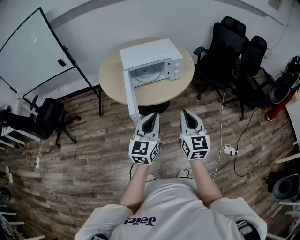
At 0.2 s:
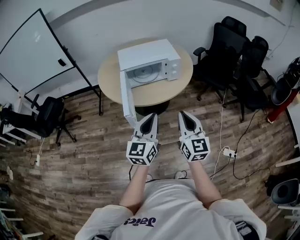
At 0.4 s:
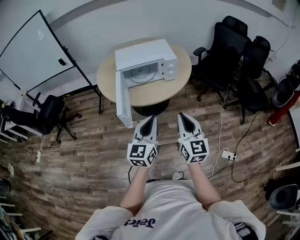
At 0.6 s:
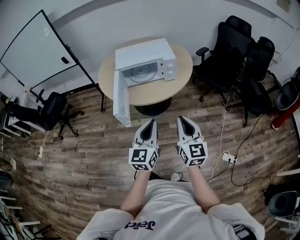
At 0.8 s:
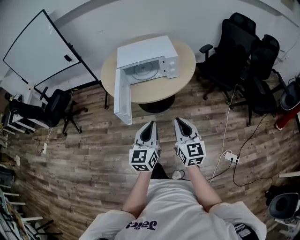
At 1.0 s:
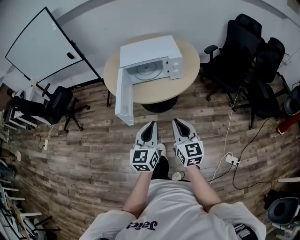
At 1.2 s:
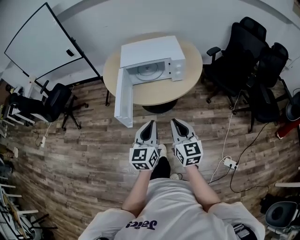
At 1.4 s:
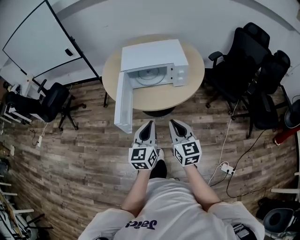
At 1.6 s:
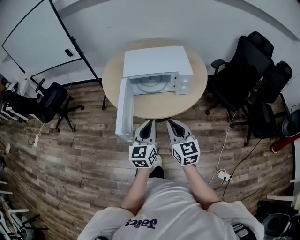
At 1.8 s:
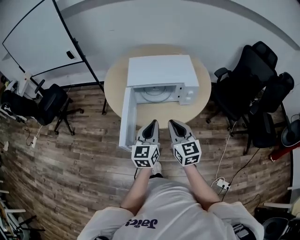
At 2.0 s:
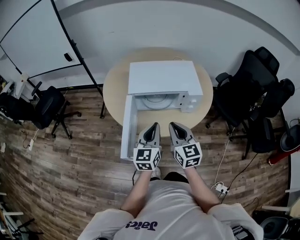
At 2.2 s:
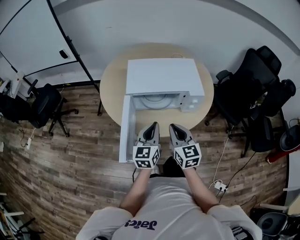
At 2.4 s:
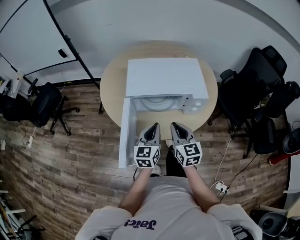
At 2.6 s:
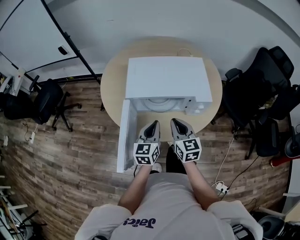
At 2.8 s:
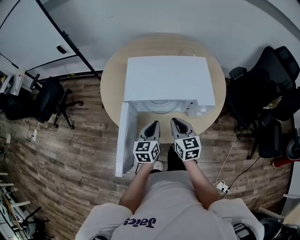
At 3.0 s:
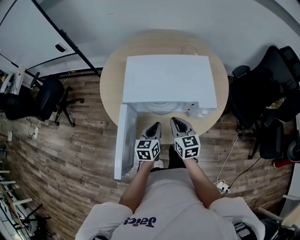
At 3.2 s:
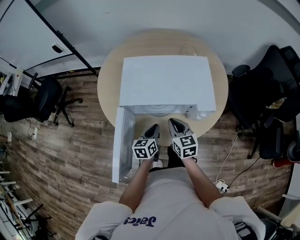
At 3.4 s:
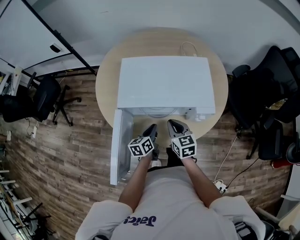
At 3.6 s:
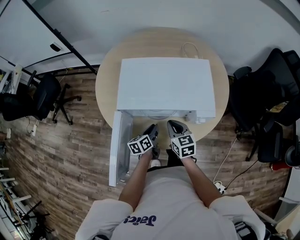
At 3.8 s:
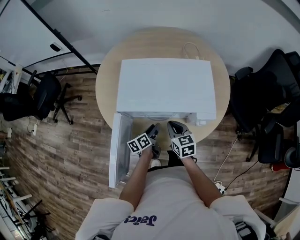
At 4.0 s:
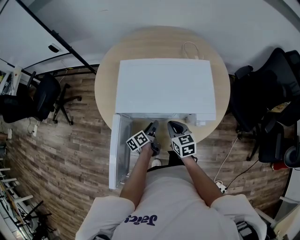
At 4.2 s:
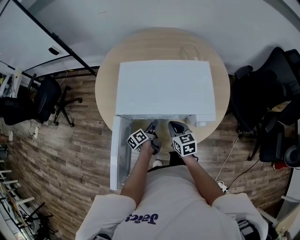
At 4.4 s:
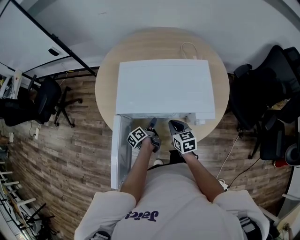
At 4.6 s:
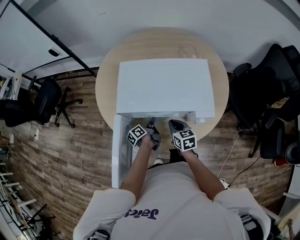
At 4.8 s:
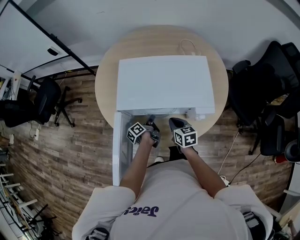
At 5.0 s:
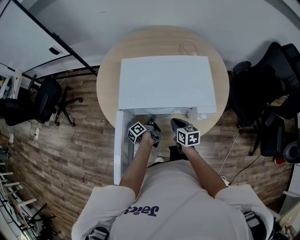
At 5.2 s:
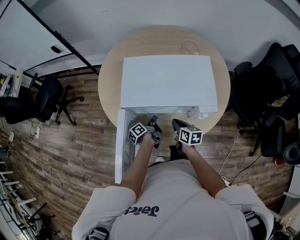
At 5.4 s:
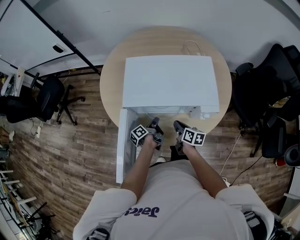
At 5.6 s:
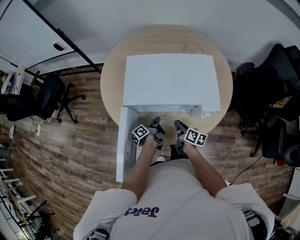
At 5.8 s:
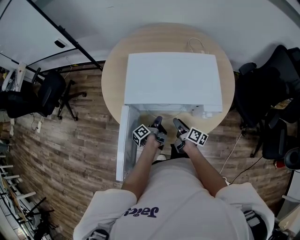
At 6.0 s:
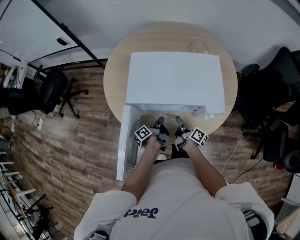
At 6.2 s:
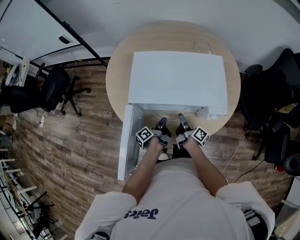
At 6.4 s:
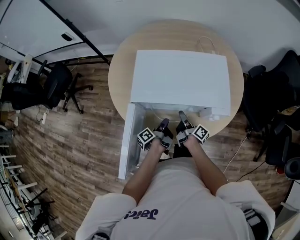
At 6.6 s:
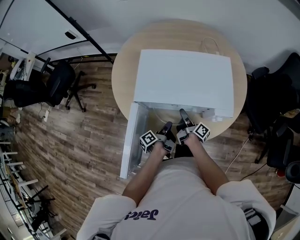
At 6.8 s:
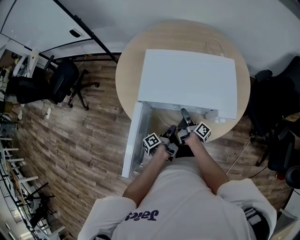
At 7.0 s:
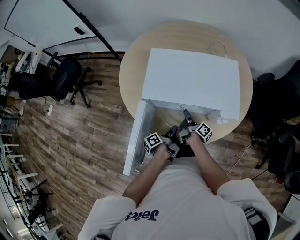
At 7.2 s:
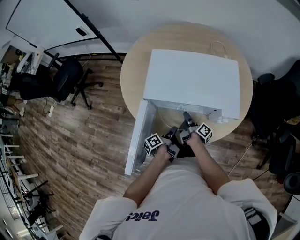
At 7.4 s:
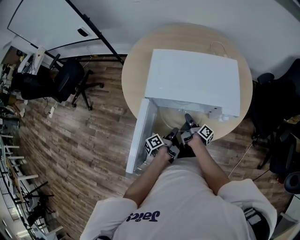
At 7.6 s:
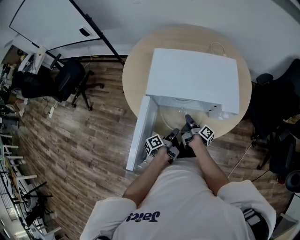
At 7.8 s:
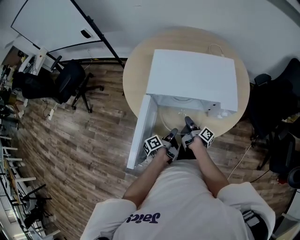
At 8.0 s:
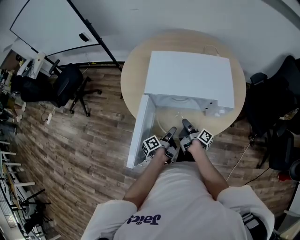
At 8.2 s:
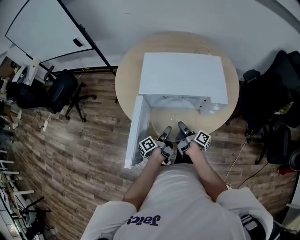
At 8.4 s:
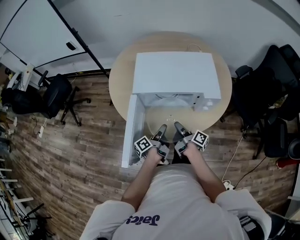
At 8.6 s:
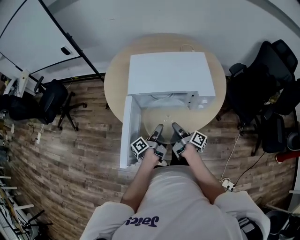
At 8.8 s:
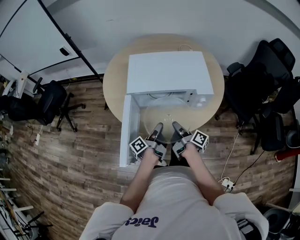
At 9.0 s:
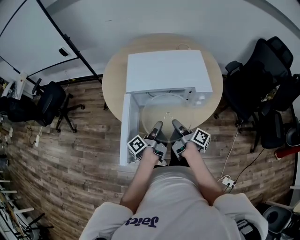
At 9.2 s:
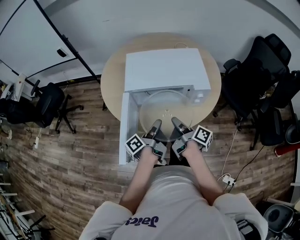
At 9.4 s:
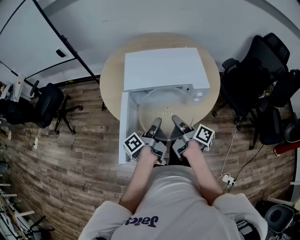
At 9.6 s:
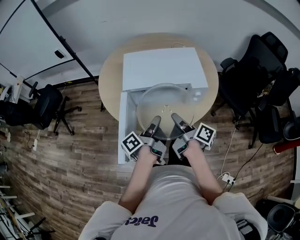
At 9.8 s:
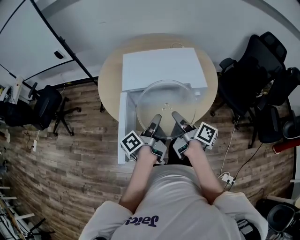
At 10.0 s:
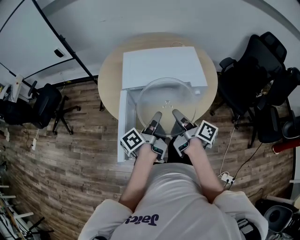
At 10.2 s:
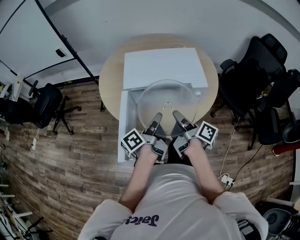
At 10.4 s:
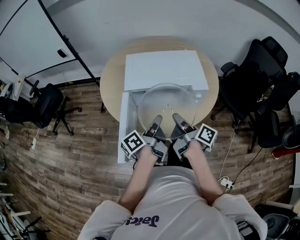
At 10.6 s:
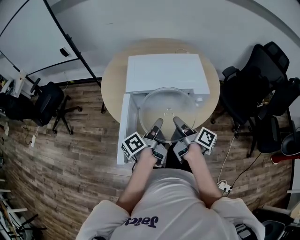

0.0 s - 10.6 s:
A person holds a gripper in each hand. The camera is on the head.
0.0 s - 1.6 s: The right gripper moves approximately 15 cm, and turns by some 20 degrees.
1.6 s - 3.0 s: The right gripper shifts by roughly 30 cm.
3.0 s - 4.6 s: The right gripper moves downward, some 10 cm.
4.6 s - 6.0 s: The right gripper travels downward by approximately 5 cm, twists approximately 60 degrees clockwise, seen from behind, and opens up.
6.0 s - 7.6 s: The right gripper closes its fingers.
7.6 s - 9.0 s: The right gripper goes approximately 15 cm upward.
9.0 s - 10.6 s: The right gripper heads upward, covering some 10 cm.

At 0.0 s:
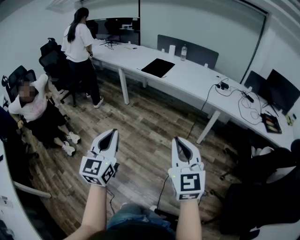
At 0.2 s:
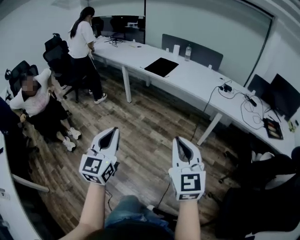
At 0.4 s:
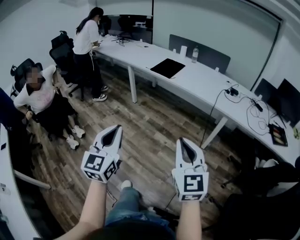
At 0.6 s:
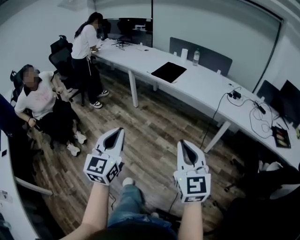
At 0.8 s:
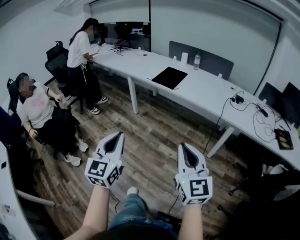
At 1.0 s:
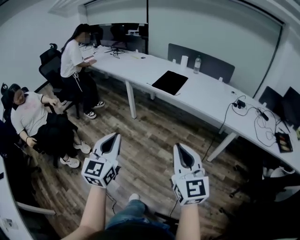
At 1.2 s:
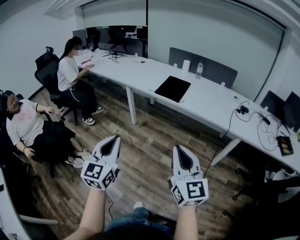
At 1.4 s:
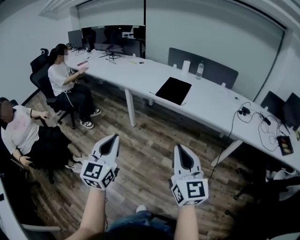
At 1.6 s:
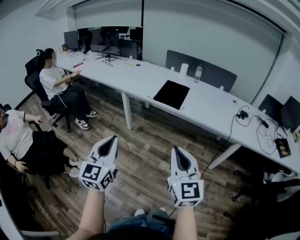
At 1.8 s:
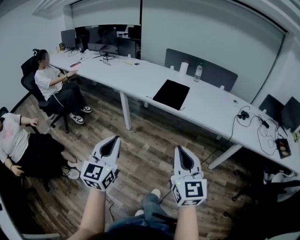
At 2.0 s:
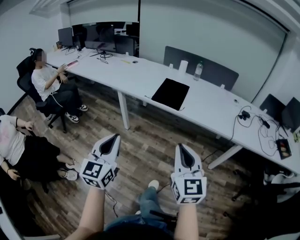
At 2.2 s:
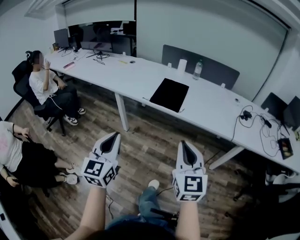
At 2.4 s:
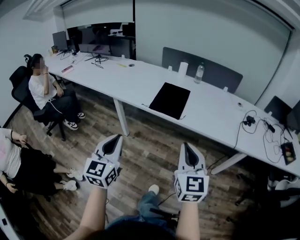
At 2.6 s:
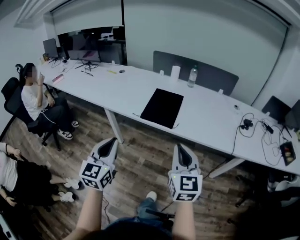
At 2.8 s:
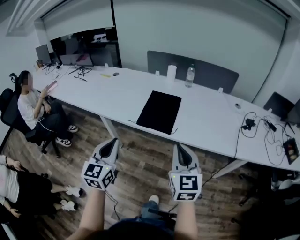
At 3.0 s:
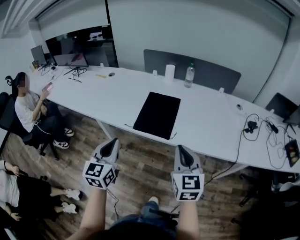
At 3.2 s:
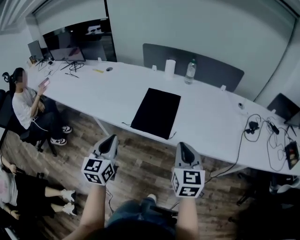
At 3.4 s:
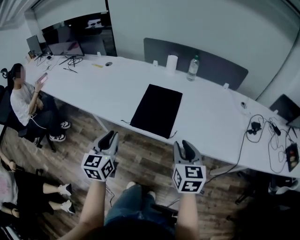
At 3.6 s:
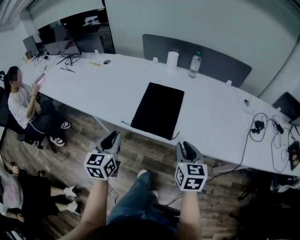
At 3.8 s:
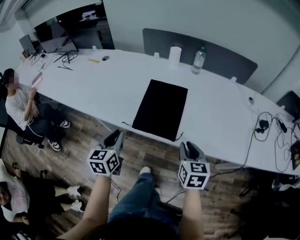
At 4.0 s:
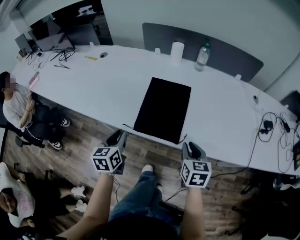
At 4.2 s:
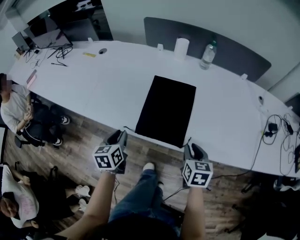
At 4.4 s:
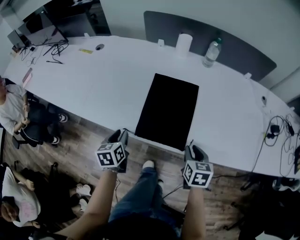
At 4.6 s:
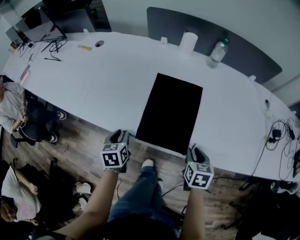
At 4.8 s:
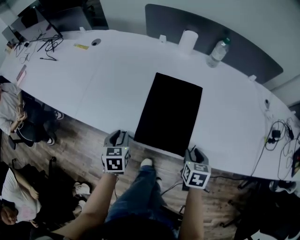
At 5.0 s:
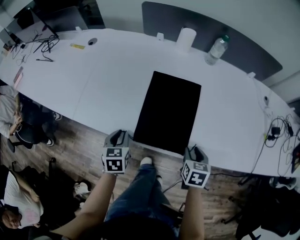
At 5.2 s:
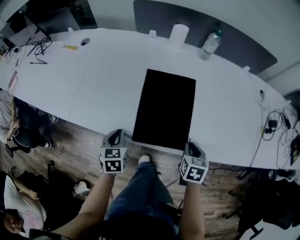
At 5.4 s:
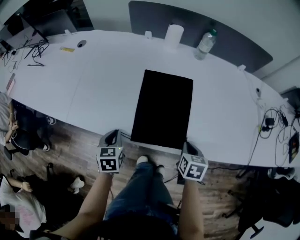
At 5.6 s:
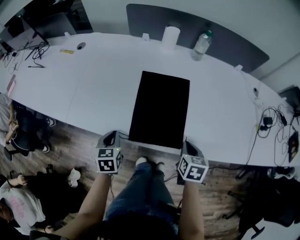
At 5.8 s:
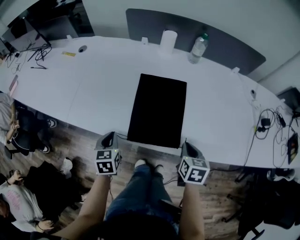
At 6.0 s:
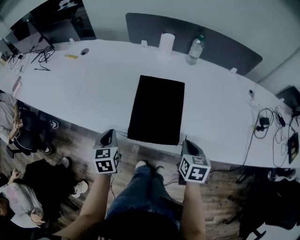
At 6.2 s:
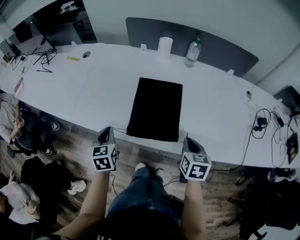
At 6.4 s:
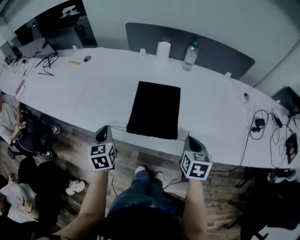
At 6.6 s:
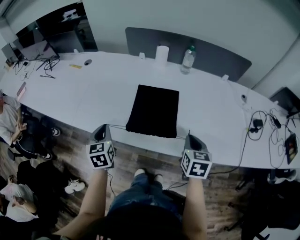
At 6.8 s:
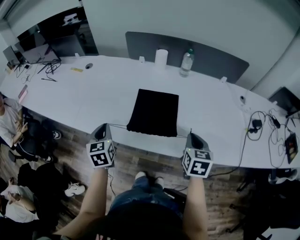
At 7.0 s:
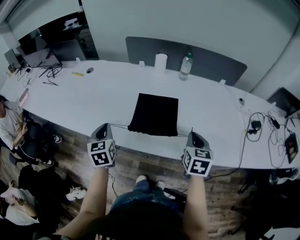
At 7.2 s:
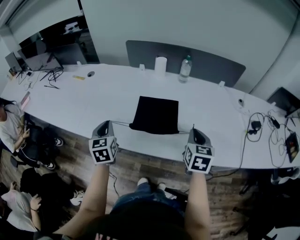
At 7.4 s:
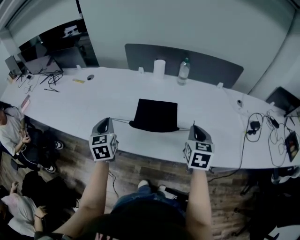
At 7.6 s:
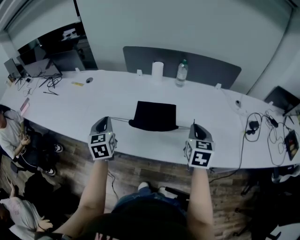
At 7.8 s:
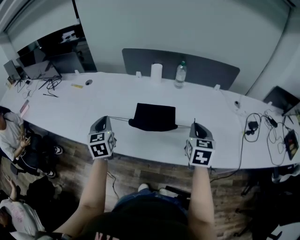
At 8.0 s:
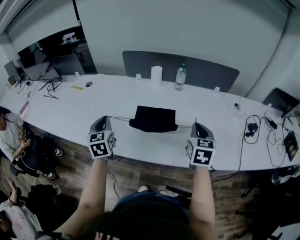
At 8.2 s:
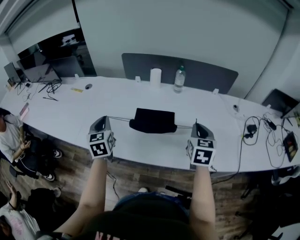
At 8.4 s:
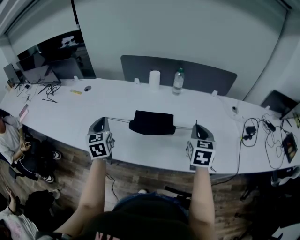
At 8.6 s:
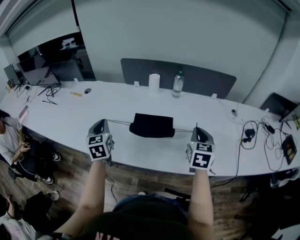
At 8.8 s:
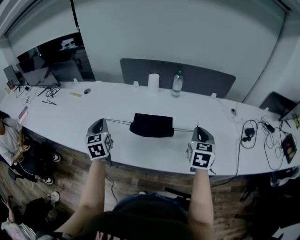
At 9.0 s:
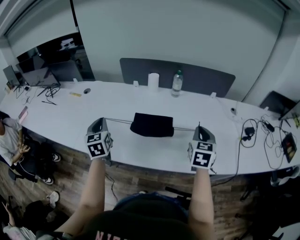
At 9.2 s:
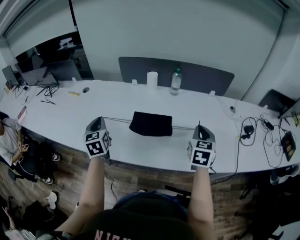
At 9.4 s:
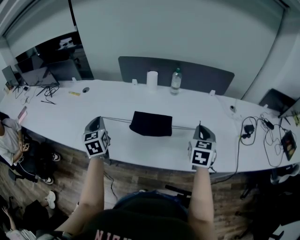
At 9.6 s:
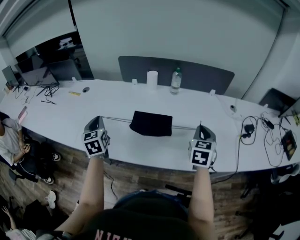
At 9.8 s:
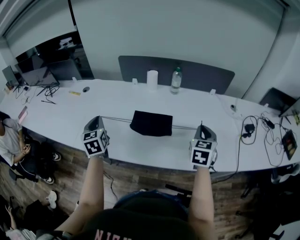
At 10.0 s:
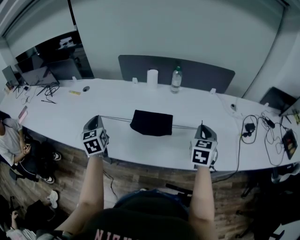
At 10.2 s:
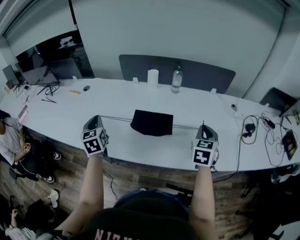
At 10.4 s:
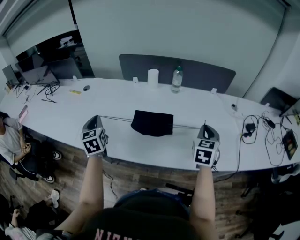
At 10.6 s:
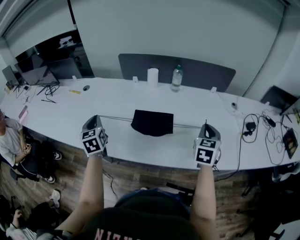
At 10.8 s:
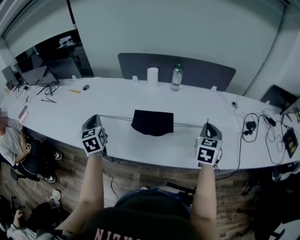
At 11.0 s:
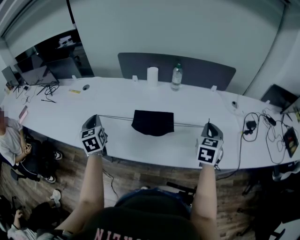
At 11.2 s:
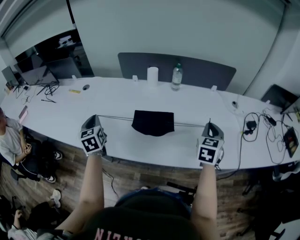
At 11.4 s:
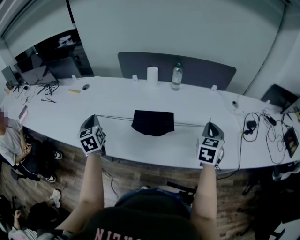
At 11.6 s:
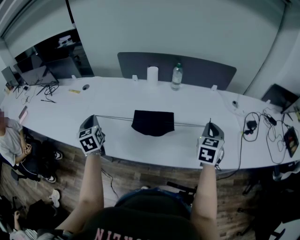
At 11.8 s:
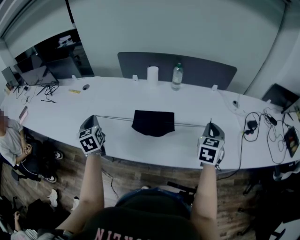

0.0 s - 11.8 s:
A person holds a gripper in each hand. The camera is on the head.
0.0 s - 1.4 s: Both grippers travel together forward and to the left, approximately 35 cm.
1.4 s - 3.0 s: Both grippers are carried forward, about 40 cm. The right gripper changes its angle by about 20 degrees.
3.0 s - 4.4 s: The two grippers go approximately 30 cm downward and forward. The right gripper points its fingers roughly 30 degrees further downward, and opens. Meanwhile the left gripper points its fingers approximately 30 degrees further downward, and opens its fingers.
4.4 s - 6.0 s: The right gripper closes its fingers, while the left gripper closes up.
6.0 s - 7.4 s: The right gripper heads upward, covering approximately 15 cm, and swivels some 20 degrees; the left gripper goes some 15 cm upward and forward.
7.4 s - 8.8 s: The left gripper ends up about 5 cm from where it was. Meanwhile the right gripper shifts by approximately 5 cm.
8.8 s - 10.4 s: The grippers move only a little.
10.4 s - 11.8 s: There are only small adjustments of the grippers.

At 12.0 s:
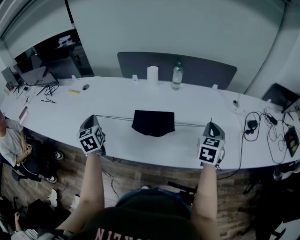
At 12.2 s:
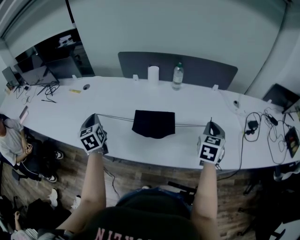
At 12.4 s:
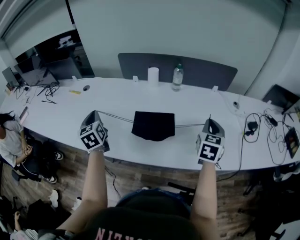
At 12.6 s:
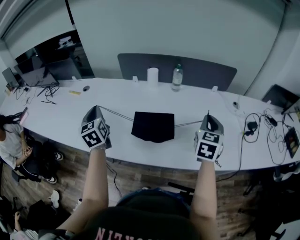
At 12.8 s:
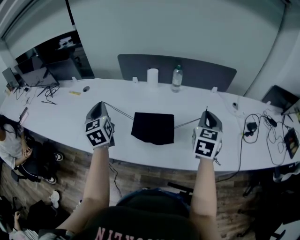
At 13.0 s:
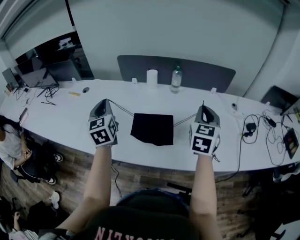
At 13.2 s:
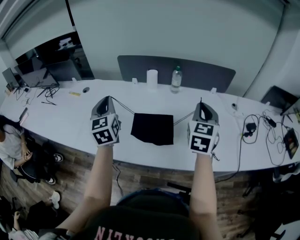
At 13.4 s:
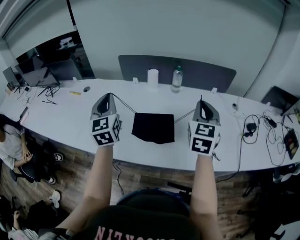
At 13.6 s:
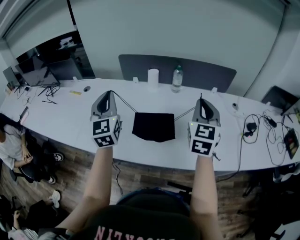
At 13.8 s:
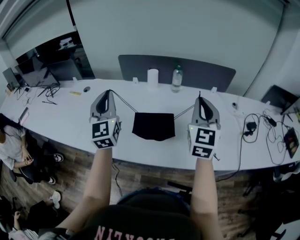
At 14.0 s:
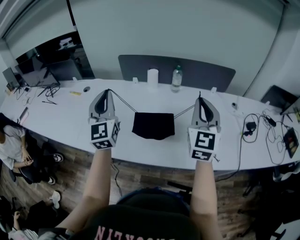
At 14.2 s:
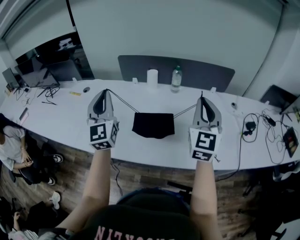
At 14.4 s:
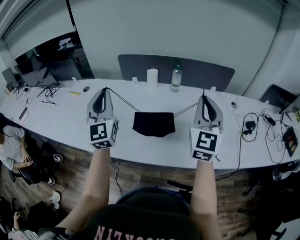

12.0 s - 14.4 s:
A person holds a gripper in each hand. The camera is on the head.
12.0 s - 13.2 s: The right gripper shifts about 15 cm upward and to the left. The left gripper moves upward and to the right, about 15 cm.
13.2 s - 14.4 s: The two grippers go some 5 cm upward. The right gripper changes its angle by approximately 20 degrees. The left gripper rotates some 20 degrees.
